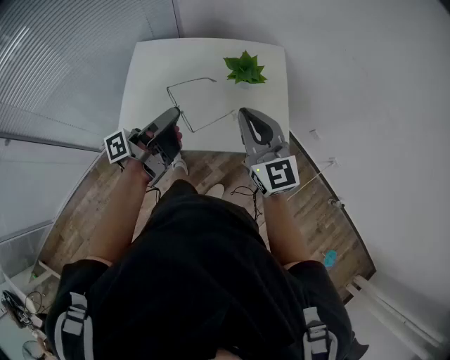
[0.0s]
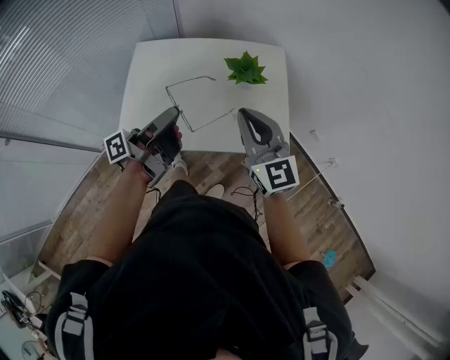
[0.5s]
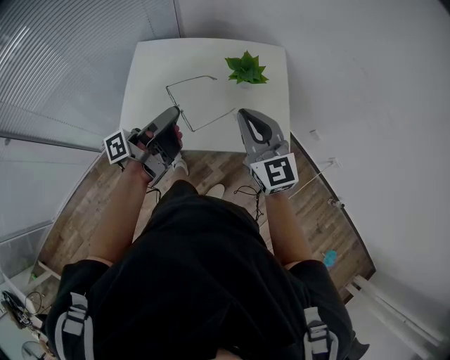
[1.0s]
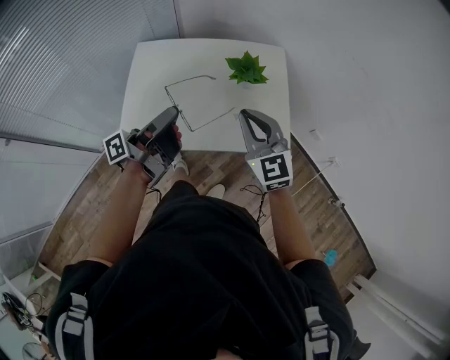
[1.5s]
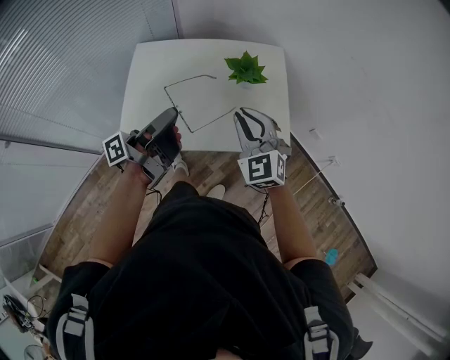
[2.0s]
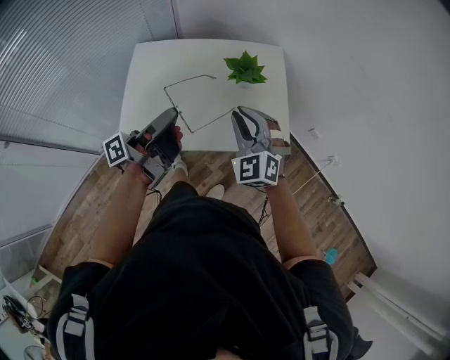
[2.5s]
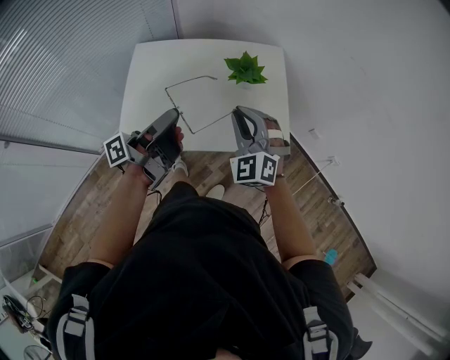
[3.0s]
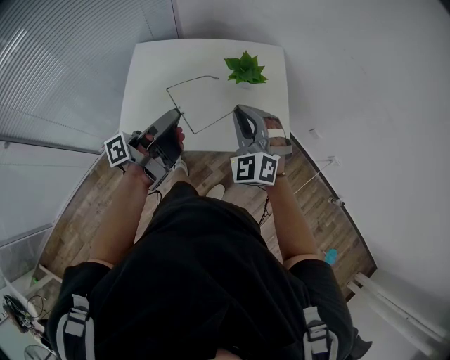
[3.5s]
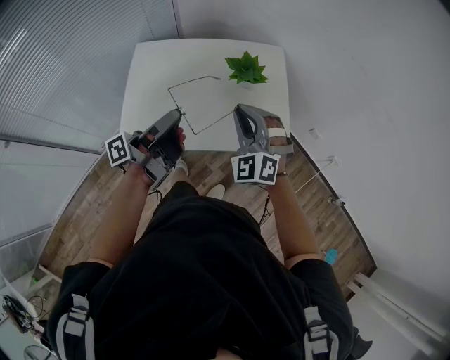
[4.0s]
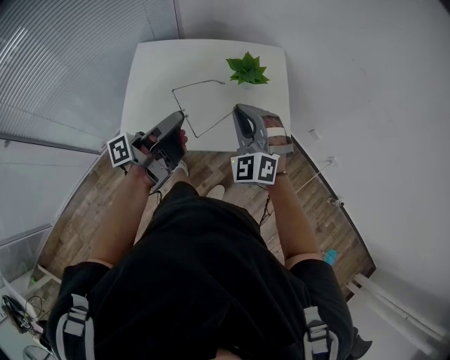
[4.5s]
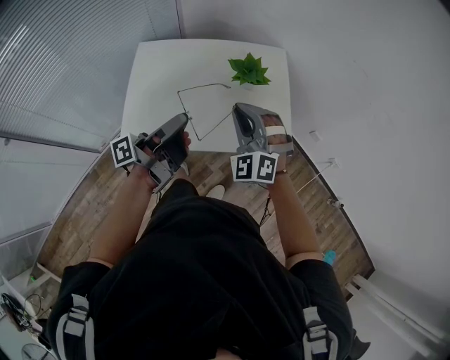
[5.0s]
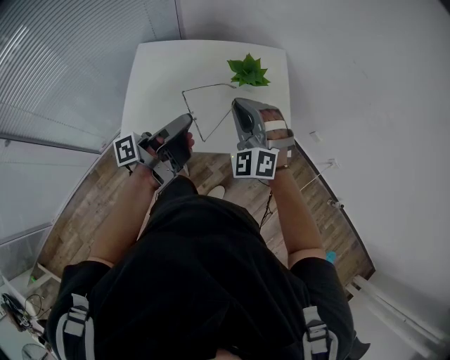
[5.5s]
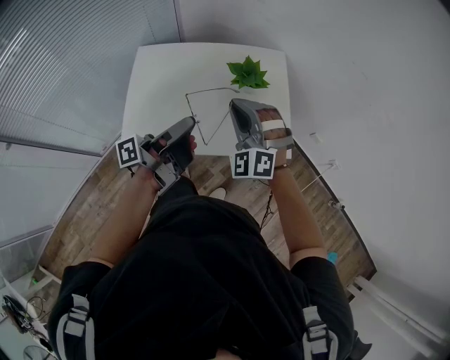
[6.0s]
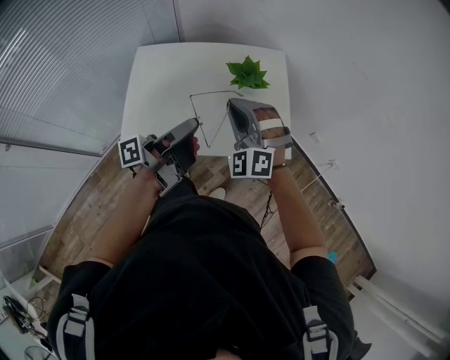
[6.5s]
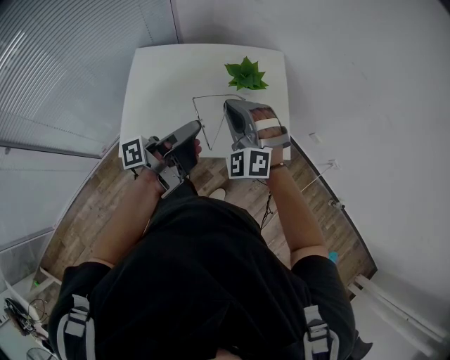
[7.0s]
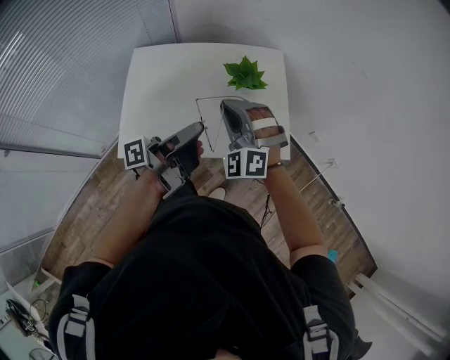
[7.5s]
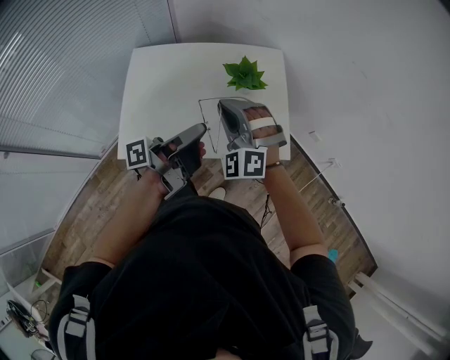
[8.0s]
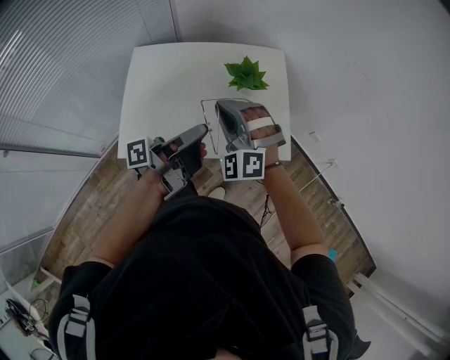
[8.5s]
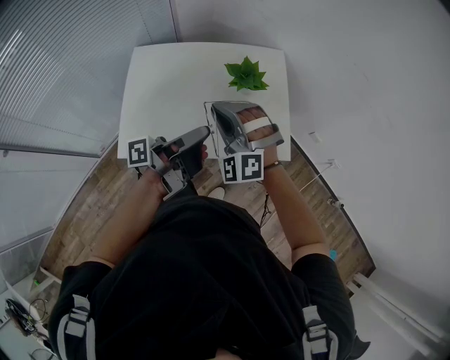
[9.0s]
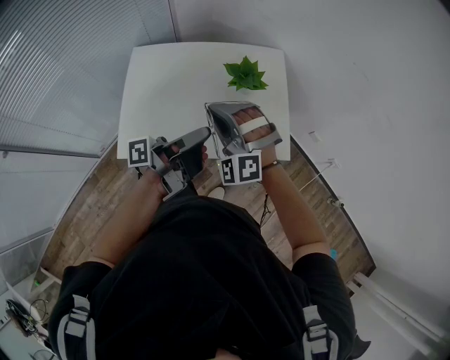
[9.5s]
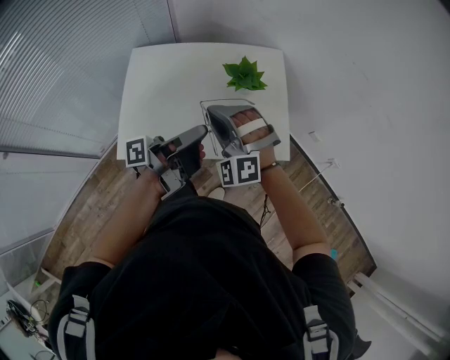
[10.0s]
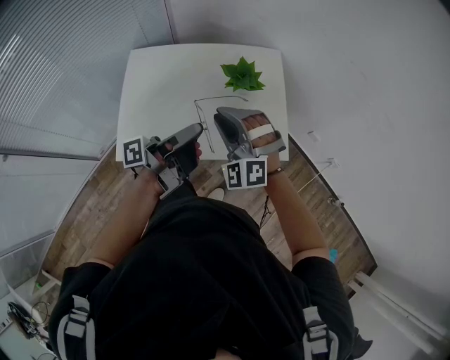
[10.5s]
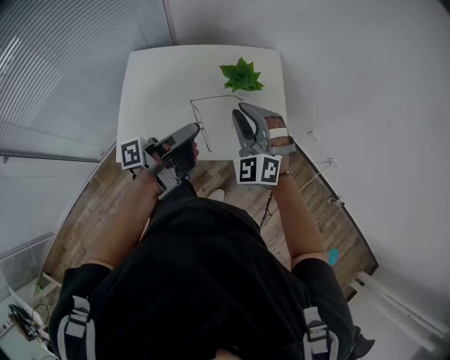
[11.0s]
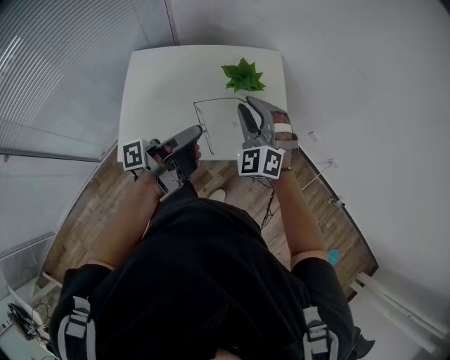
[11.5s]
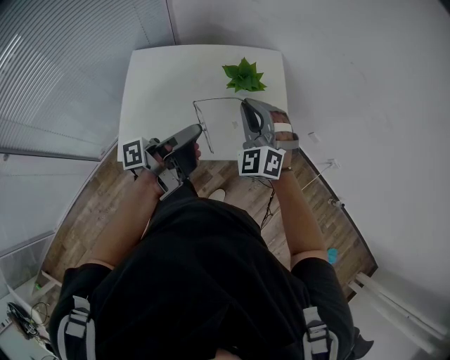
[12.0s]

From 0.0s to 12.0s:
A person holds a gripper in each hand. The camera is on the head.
From 0.0s to 2.0s: The right gripper shifts approximately 5 cm downward, and swivels roughly 30 degrees.
From 2.0s to 4.0s: The right gripper turns by about 20 degrees.
From 10.0s to 12.0s: The right gripper changes place by roughly 10 cm, and turns by approximately 20 degrees.

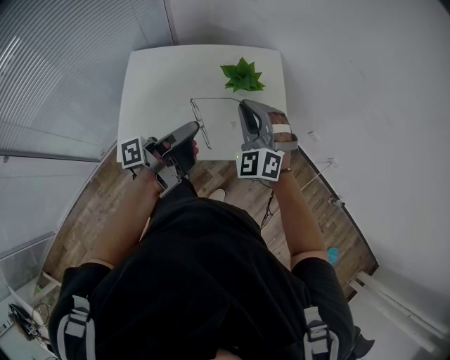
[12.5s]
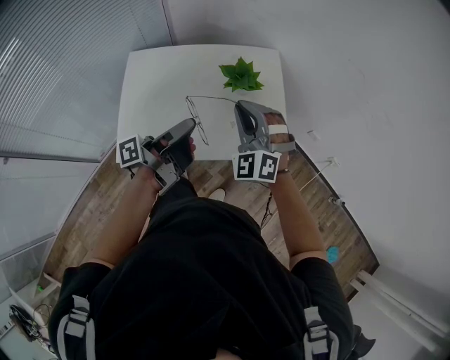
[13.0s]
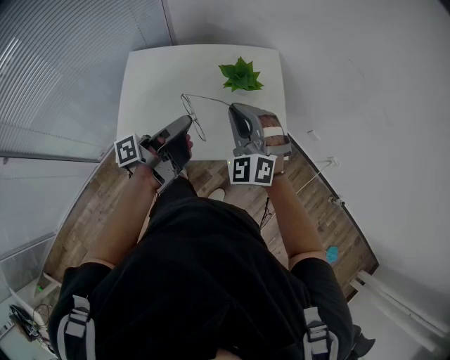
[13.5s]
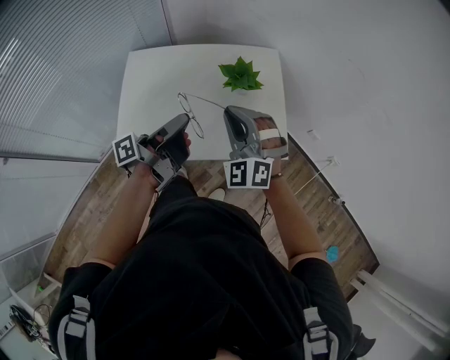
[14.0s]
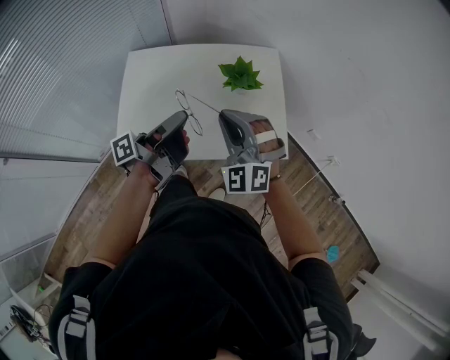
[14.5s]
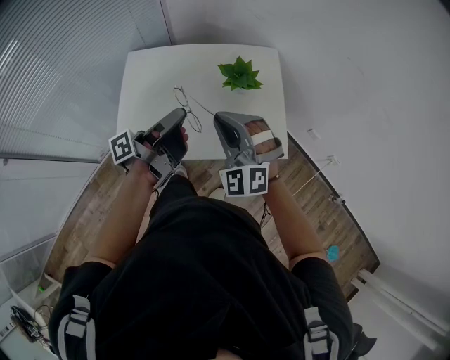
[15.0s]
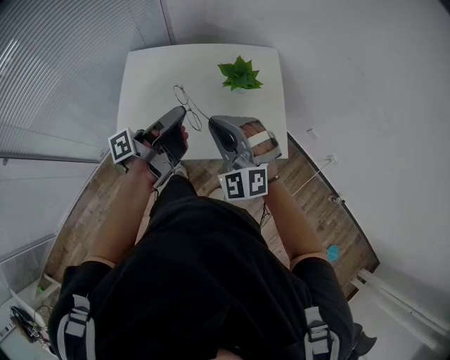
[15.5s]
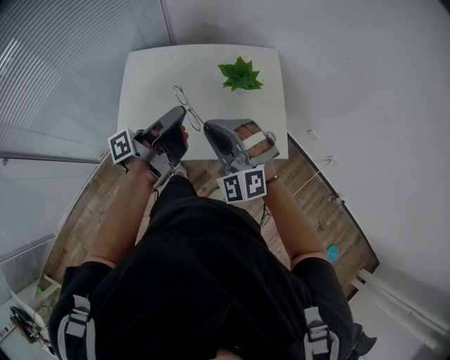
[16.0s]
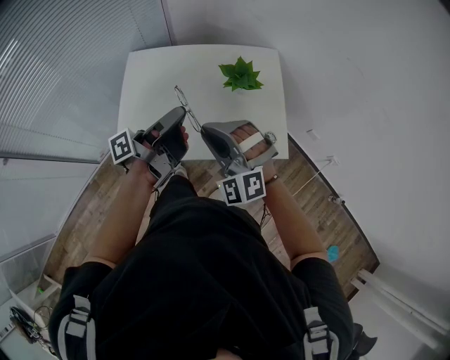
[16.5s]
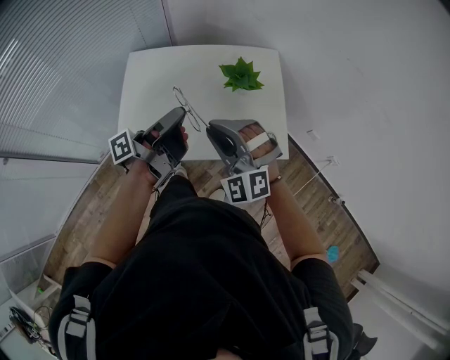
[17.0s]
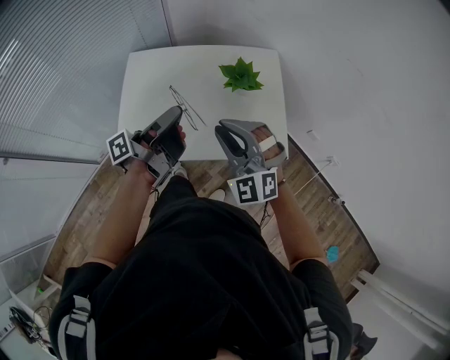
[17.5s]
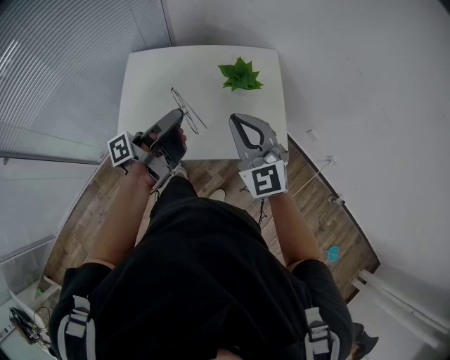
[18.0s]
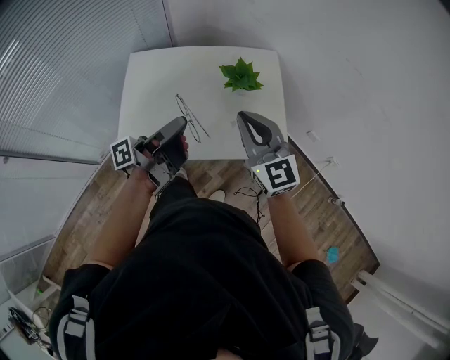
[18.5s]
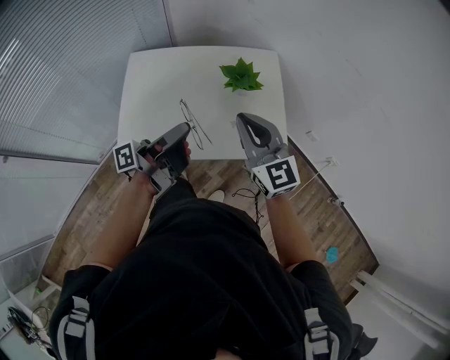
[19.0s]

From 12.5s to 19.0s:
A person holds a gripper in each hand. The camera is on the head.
From 12.5s to 14.5s: The right gripper ends up about 5 cm from where it was.
From 17.0s to 19.0s: The right gripper ends up about 10 cm from where it was, and rotates around the line of its fingers by some 50 degrees, clockwise from behind.

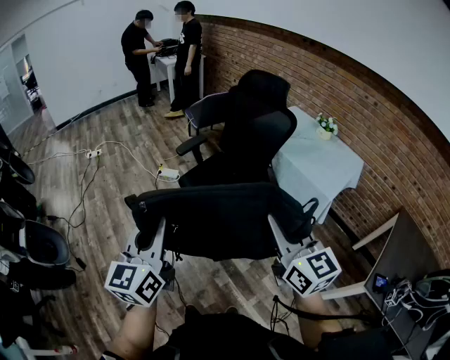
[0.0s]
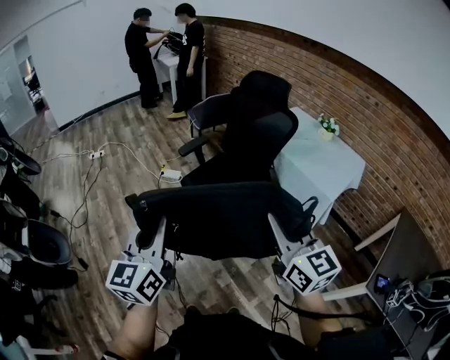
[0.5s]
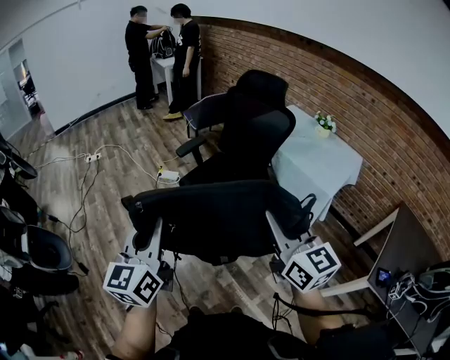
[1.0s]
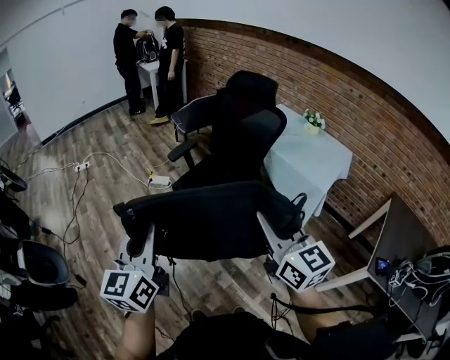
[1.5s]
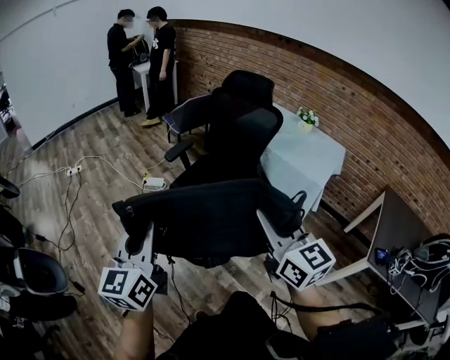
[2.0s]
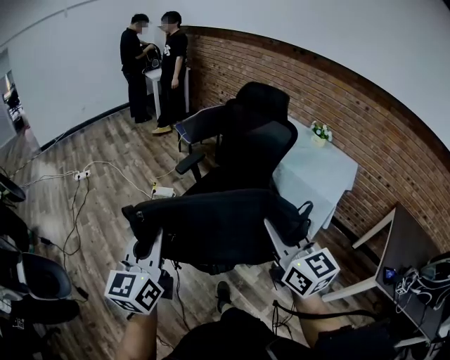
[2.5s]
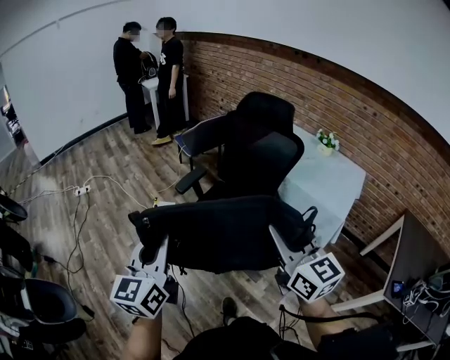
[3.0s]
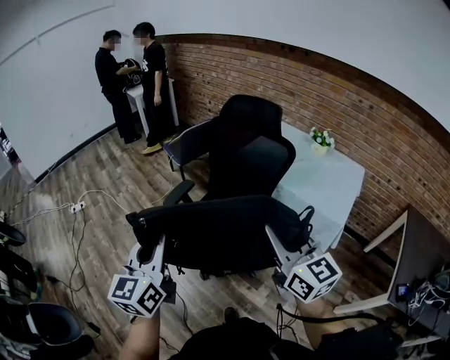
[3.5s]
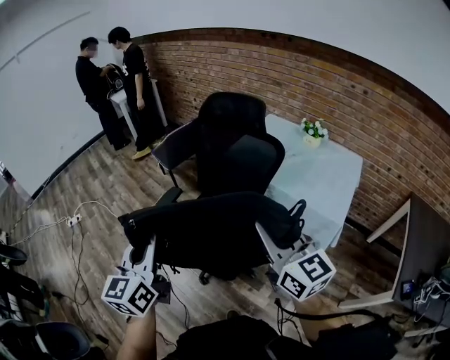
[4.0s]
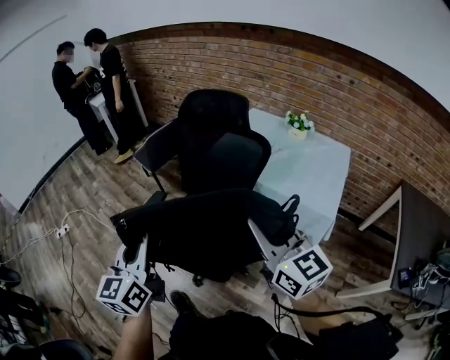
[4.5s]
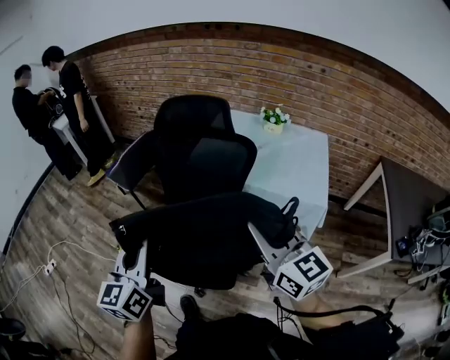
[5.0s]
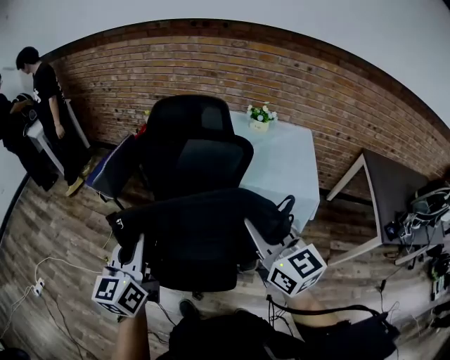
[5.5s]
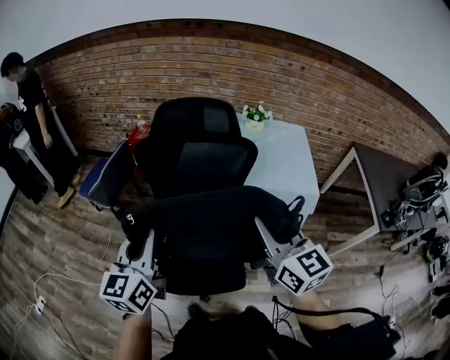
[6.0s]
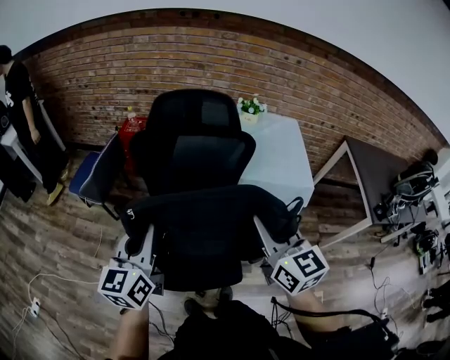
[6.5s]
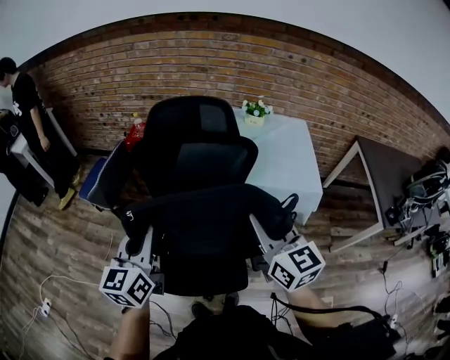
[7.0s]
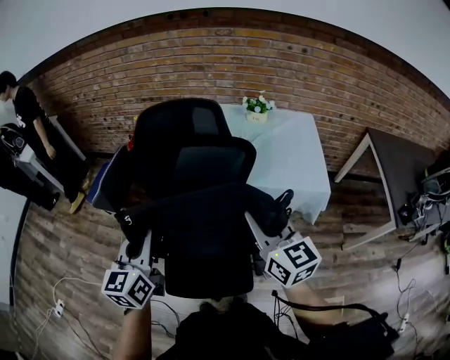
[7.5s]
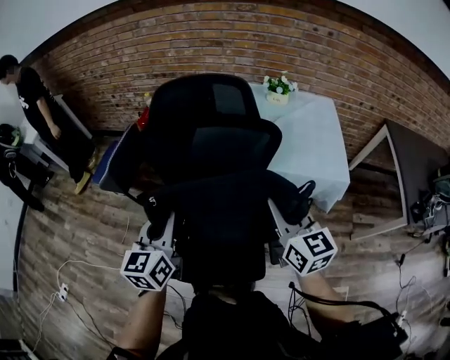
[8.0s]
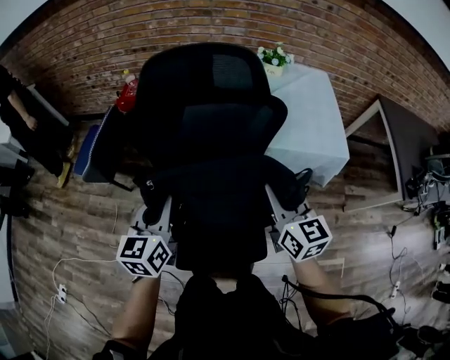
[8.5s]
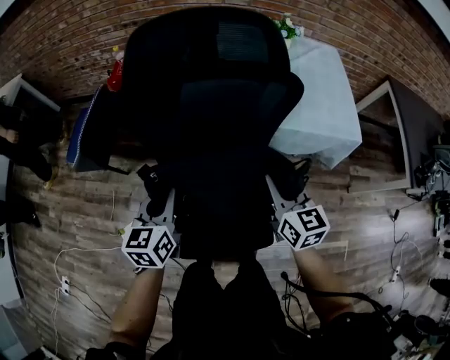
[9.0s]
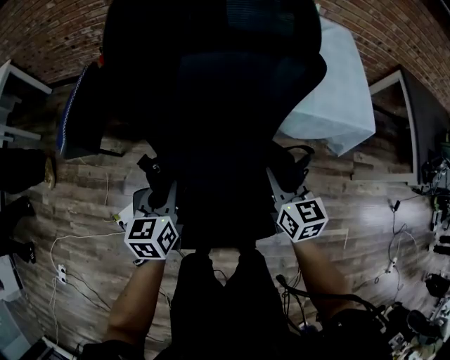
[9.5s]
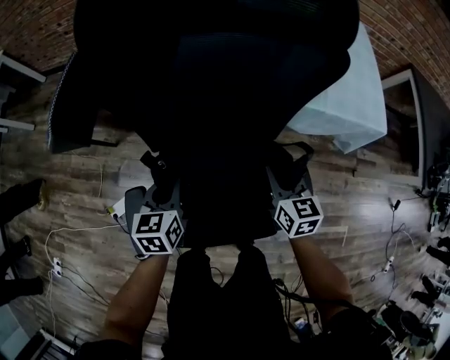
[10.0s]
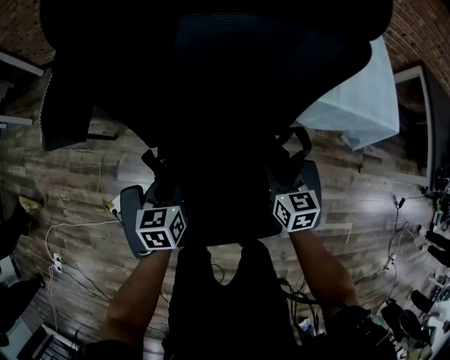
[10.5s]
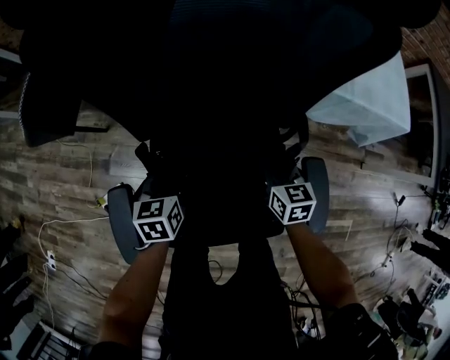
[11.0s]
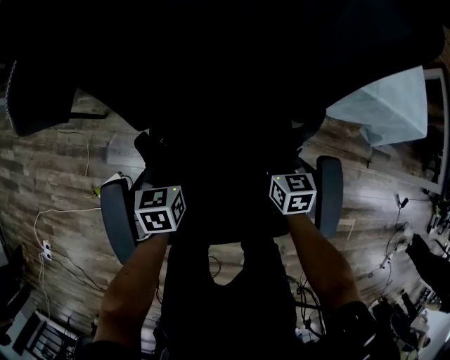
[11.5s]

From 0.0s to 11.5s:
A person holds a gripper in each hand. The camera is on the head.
From 0.0s to 2.0s: The two grippers go about 10 cm to the left.
From 2.0s to 4.0s: The right gripper goes roughly 30 cm forward and to the right; the left gripper shifts about 30 cm forward.
From 4.0s to 6.0s: The left gripper moves roughly 30 cm, and swivels about 30 degrees. Meanwhile the right gripper moves some 15 cm, and turns by roughly 30 degrees.
From 6.0s to 7.5s: The two grippers go approximately 5 cm forward.
From 7.5s to 9.5s: The right gripper is displaced downward by roughly 25 cm, and swivels about 20 degrees, while the left gripper heads downward and forward, covering some 30 cm, and turns by approximately 20 degrees.
From 9.5s to 11.5s: The grippers both shift downward by some 25 cm.
